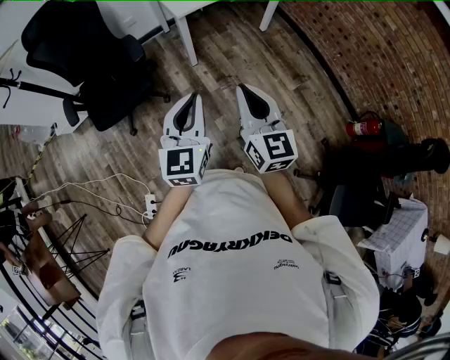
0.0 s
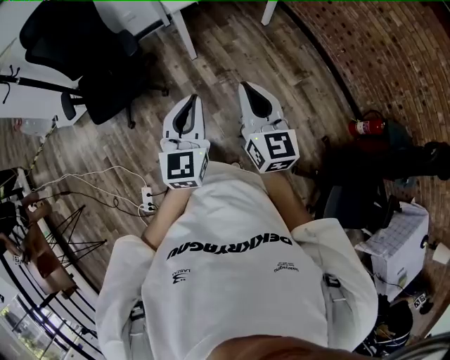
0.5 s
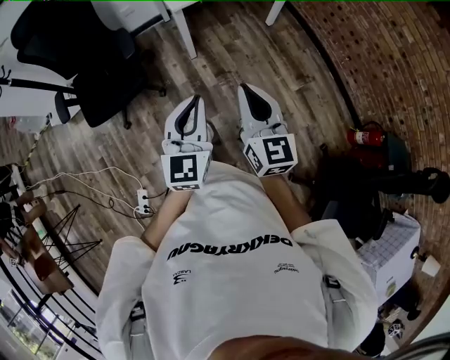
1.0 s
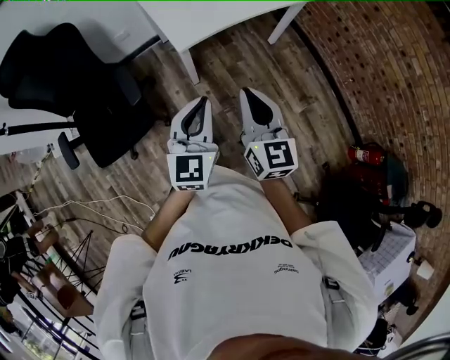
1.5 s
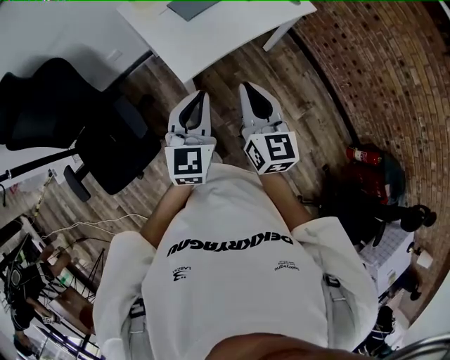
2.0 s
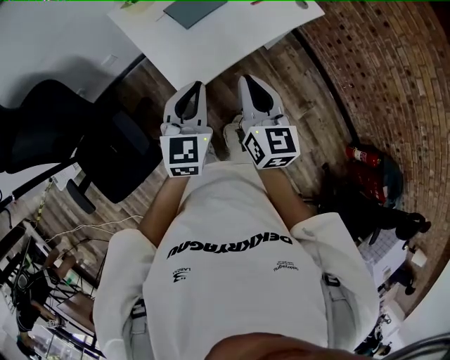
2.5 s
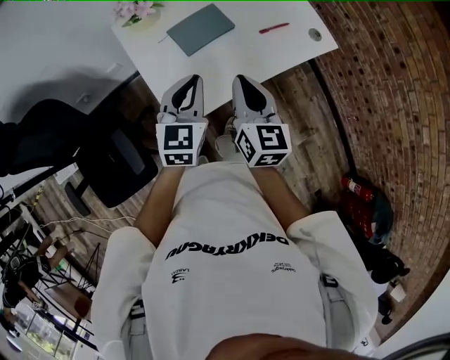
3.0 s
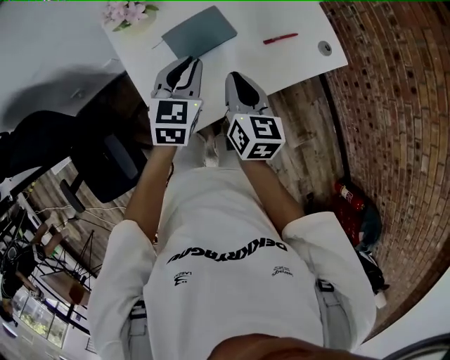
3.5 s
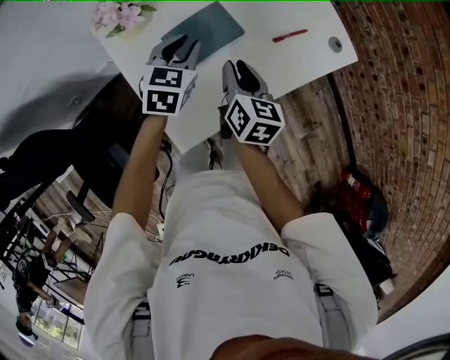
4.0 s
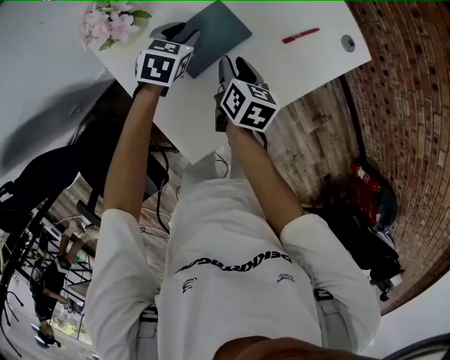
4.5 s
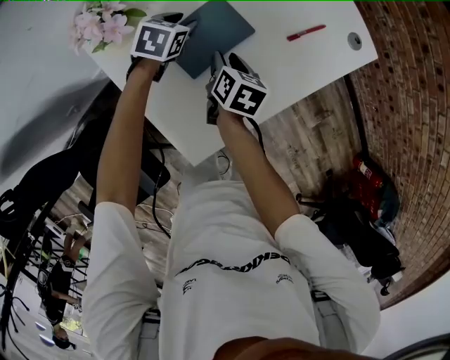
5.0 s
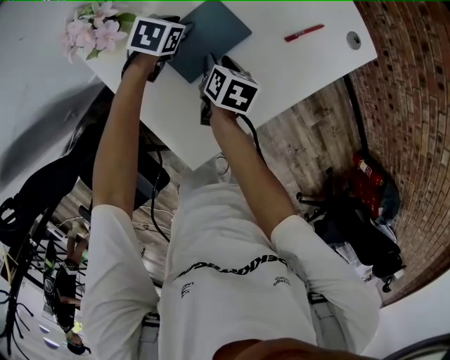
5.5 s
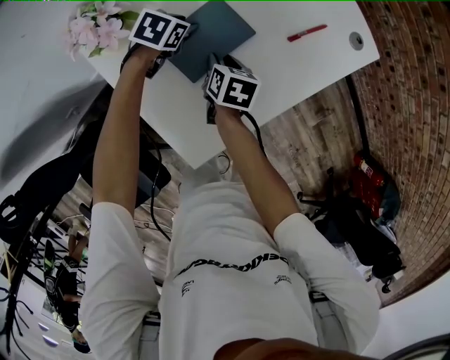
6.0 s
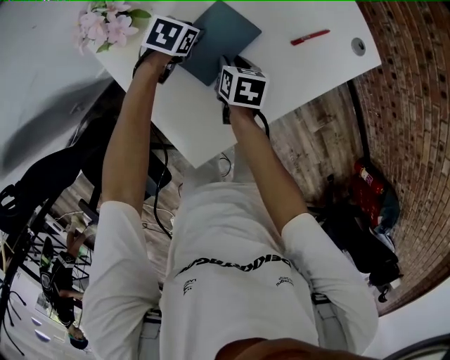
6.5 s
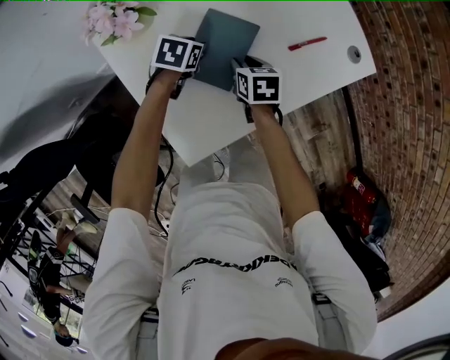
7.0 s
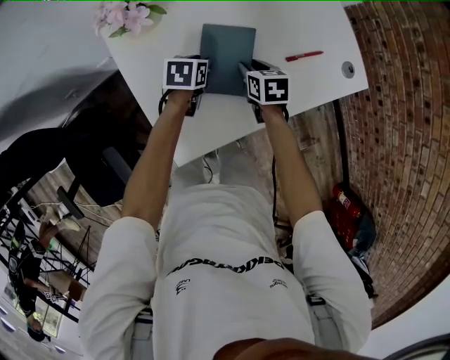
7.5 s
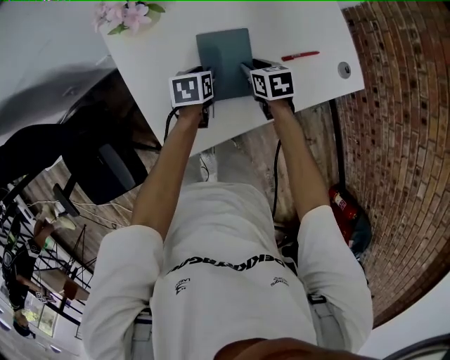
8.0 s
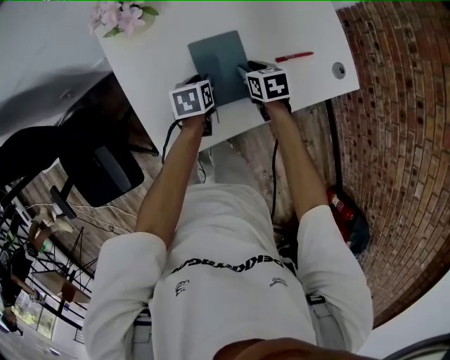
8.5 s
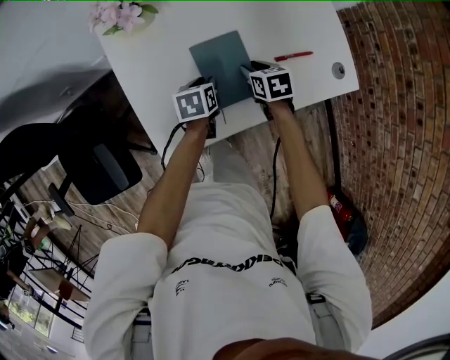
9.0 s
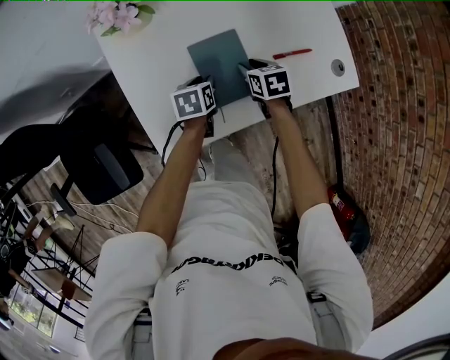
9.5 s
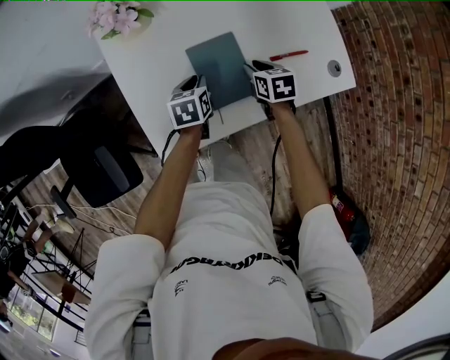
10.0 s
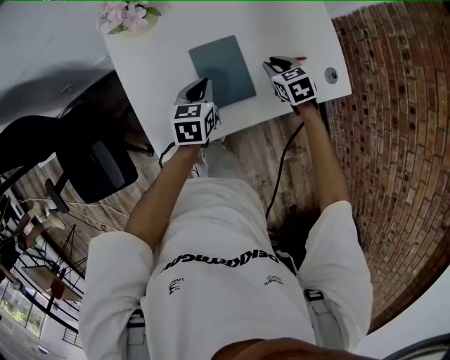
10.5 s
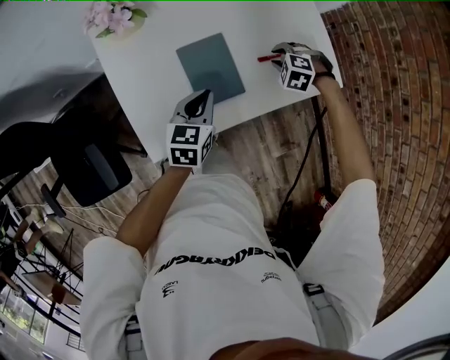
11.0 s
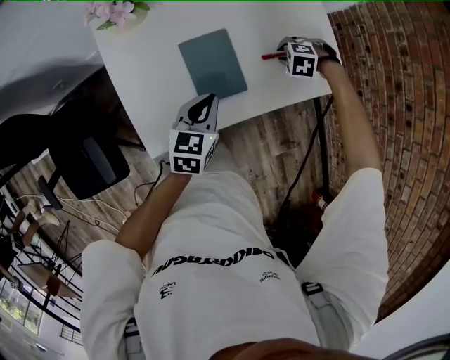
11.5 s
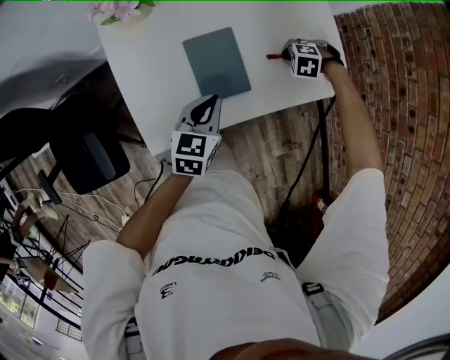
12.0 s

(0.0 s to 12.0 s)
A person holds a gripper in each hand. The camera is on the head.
0.0 s - 2.0 s: The pair of grippers is taken forward, roughly 50 cm.
2.0 s - 4.0 s: The pair of grippers is taken forward, about 50 cm. The right gripper moves downward, about 20 cm, rotates approximately 30 degrees, and opens up; the left gripper turns by roughly 30 degrees, and opens up.
4.0 s - 6.0 s: The left gripper heads downward and forward, covering roughly 20 cm, and turns by roughly 40 degrees. Meanwhile the right gripper goes some 20 cm downward, and changes its angle by approximately 30 degrees.
6.0 s - 8.0 s: The left gripper changes place by roughly 15 cm, and rotates around the line of its fingers by some 40 degrees, counterclockwise from behind; the right gripper moves approximately 5 cm, and rotates some 40 degrees.
8.0 s - 10.0 s: The grippers stay close to where they were, moving slightly.
10.0 s - 12.0 s: The right gripper ends up about 15 cm from where it was, and rotates around the line of its fingers by approximately 80 degrees, counterclockwise from behind; the left gripper moves upward, some 10 cm, and turns by approximately 20 degrees.

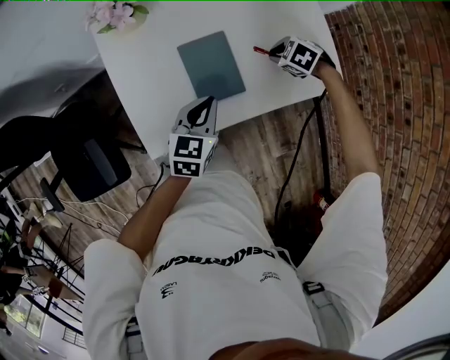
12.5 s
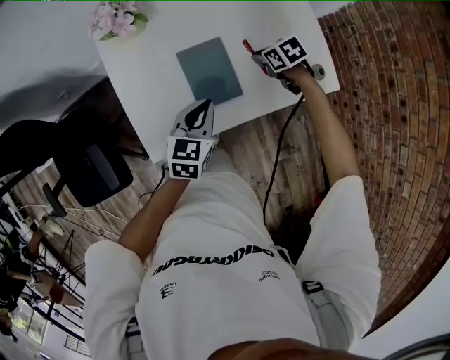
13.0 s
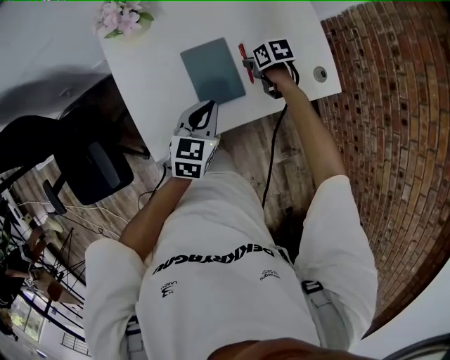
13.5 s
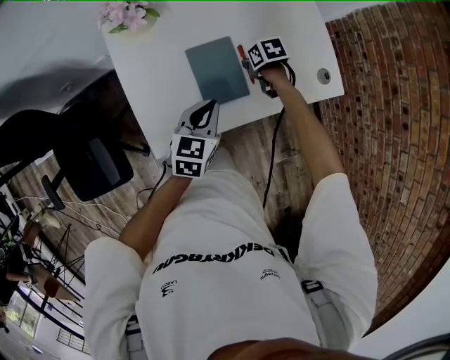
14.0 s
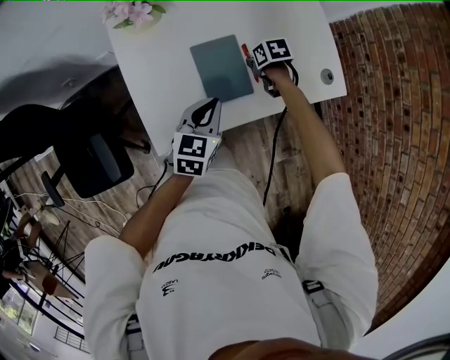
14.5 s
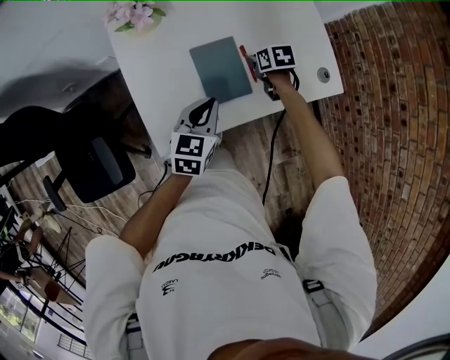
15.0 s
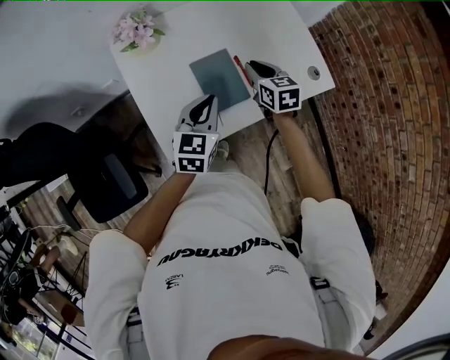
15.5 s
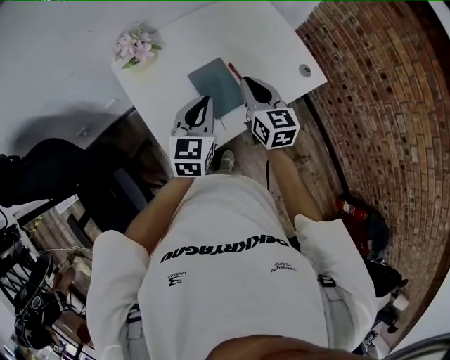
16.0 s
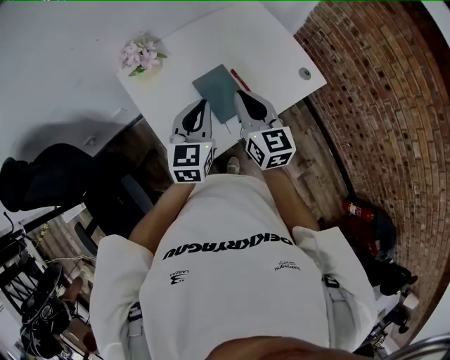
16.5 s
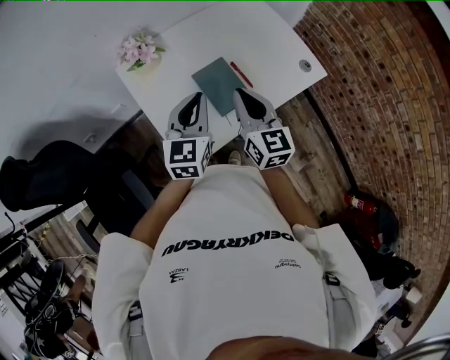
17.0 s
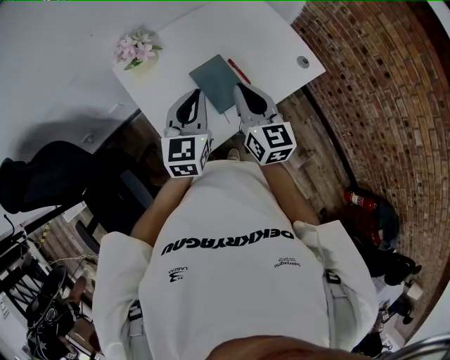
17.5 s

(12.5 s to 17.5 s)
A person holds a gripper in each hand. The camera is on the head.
12.5 s - 15.0 s: The right gripper moves about 5 cm, and twists some 60 degrees clockwise, seen from behind.
15.0 s - 17.5 s: The left gripper travels upward by about 15 cm, and turns by about 20 degrees; the right gripper shifts approximately 35 cm upward and backward, and tilts its fingers approximately 60 degrees upward.

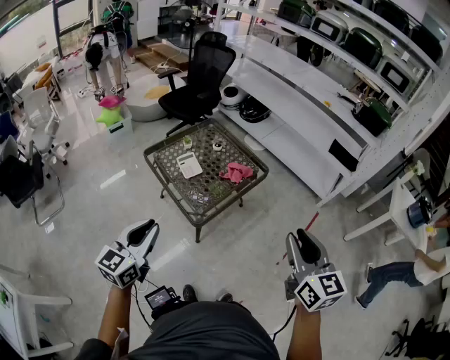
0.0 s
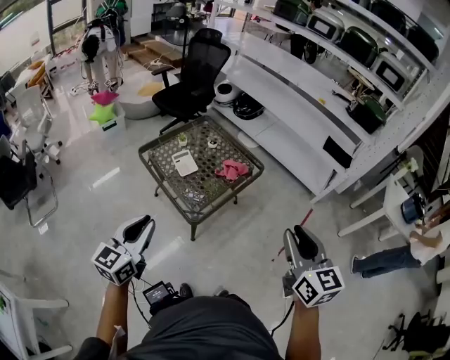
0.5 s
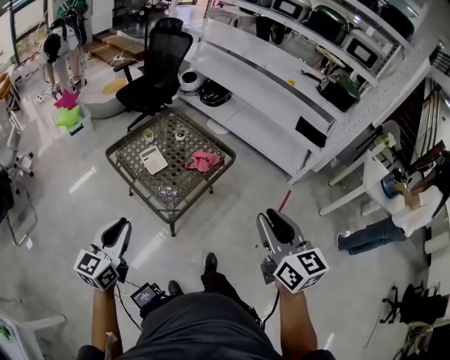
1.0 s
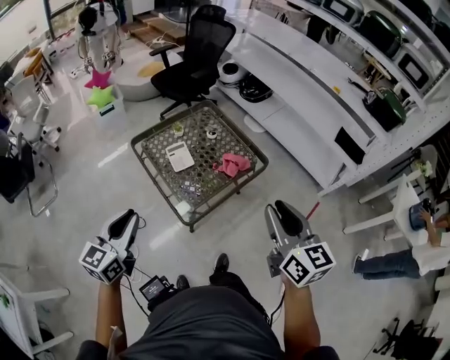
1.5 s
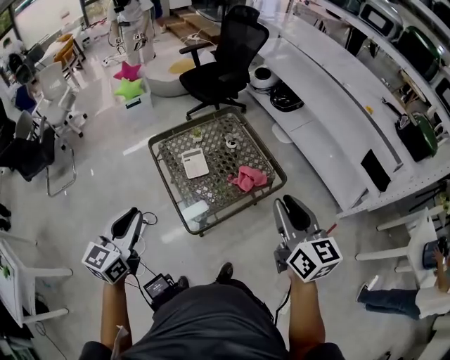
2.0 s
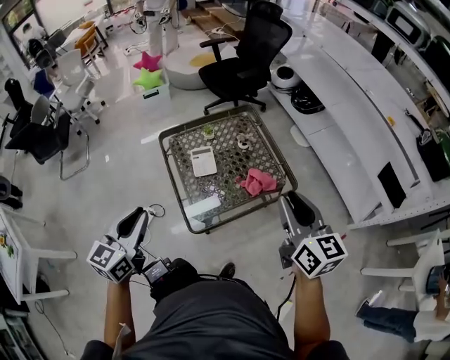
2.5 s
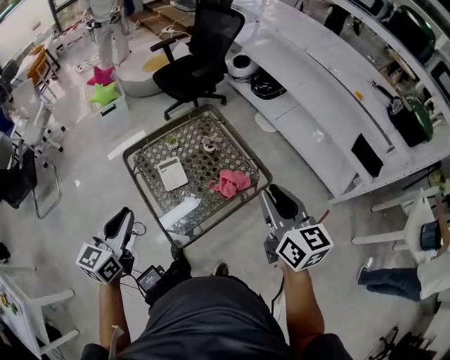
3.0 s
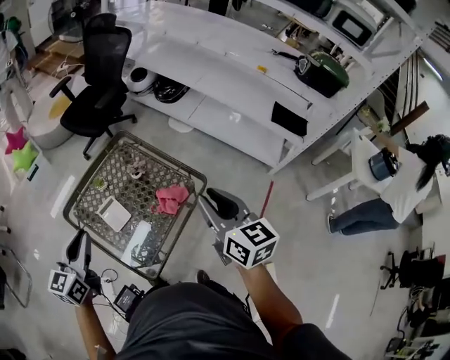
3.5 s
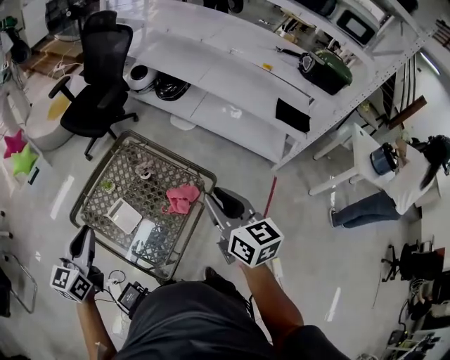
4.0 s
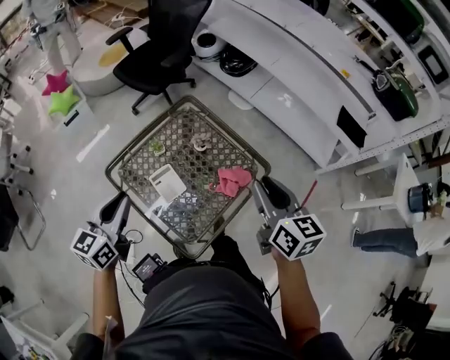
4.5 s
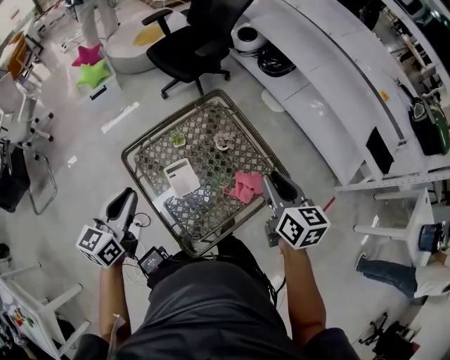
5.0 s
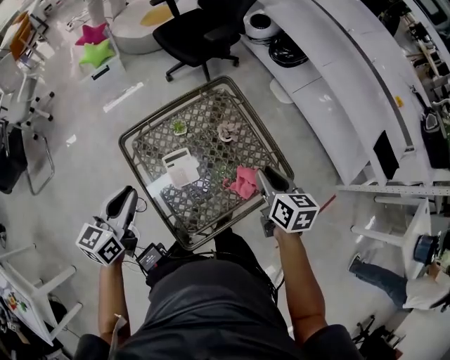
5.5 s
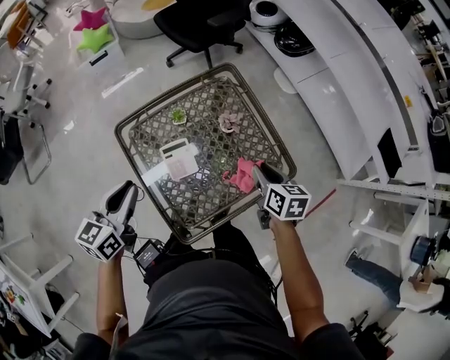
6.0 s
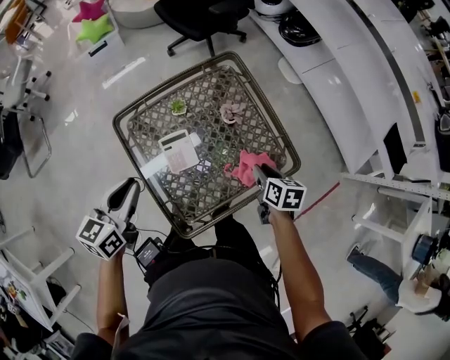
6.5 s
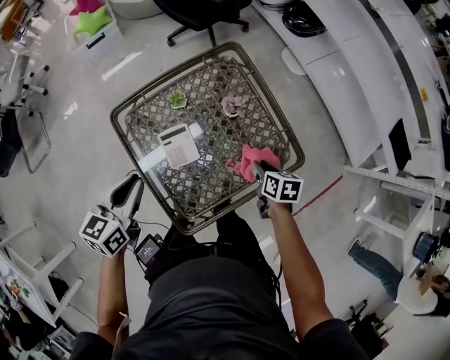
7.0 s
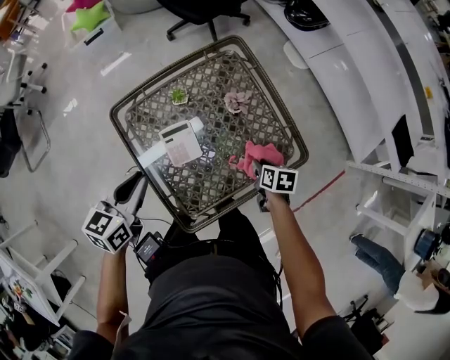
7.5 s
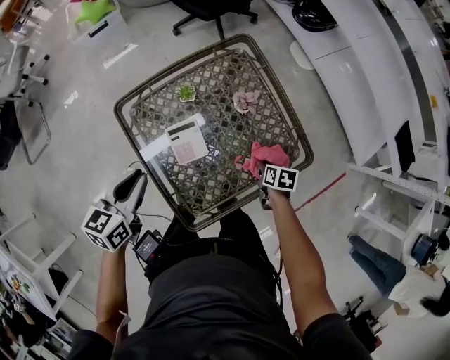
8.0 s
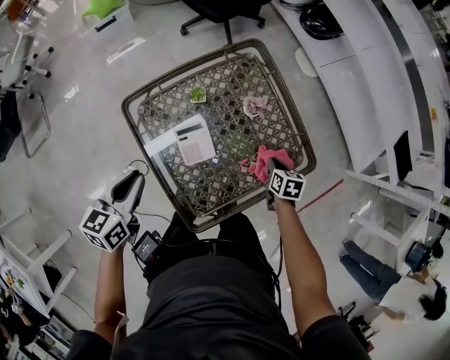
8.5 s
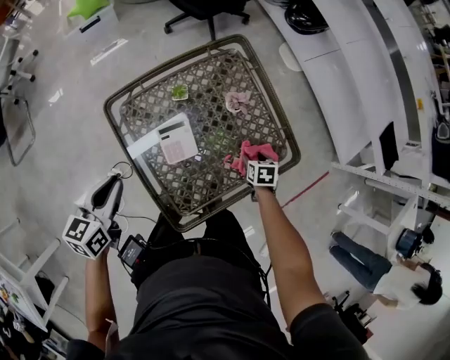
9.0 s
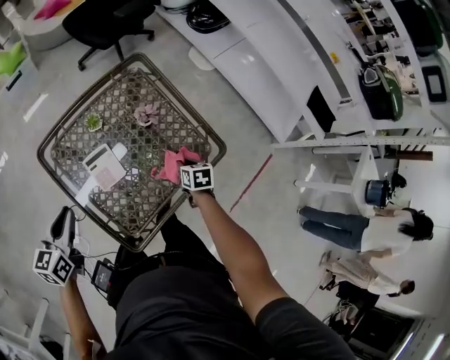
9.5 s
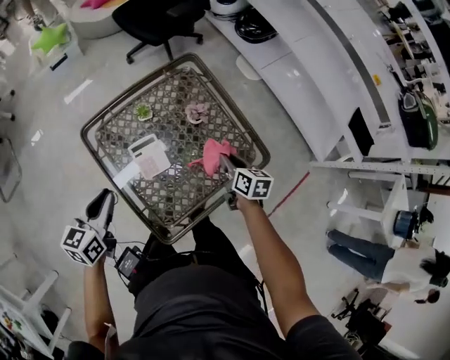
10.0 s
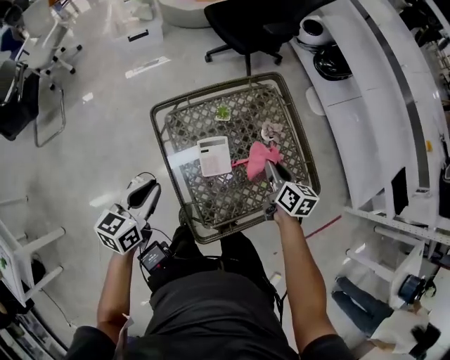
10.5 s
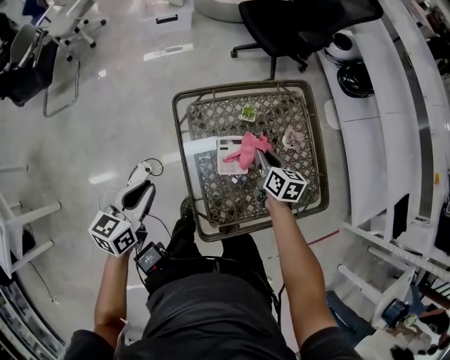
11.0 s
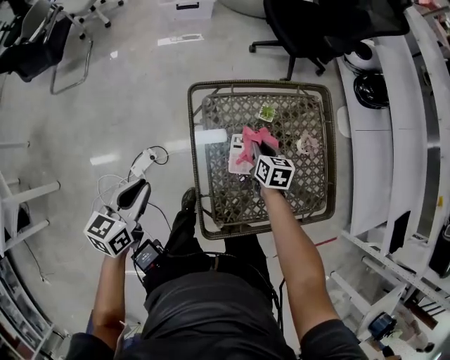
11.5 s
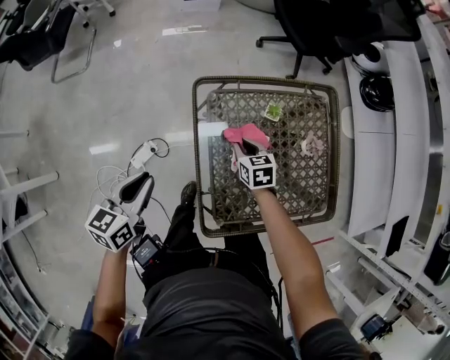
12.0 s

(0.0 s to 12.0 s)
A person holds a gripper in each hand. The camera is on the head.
0.0 s - 2.0 s: The left gripper goes roughly 15 cm forward. Meanwhile the right gripper travels forward by some 30 cm.
2.0 s - 4.0 s: The left gripper shifts by about 30 cm, and swivels about 20 degrees. The right gripper changes place by roughly 15 cm, and rotates roughly 20 degrees.
4.0 s - 6.0 s: The left gripper travels downward by roughly 10 cm, and changes its angle by about 20 degrees. The right gripper heads downward and forward, covering roughly 30 cm, and swivels approximately 30 degrees.
6.0 s - 8.0 s: The right gripper heads downward, covering about 20 cm, and swivels approximately 30 degrees. The left gripper travels downward by approximately 5 cm.
8.0 s - 10.0 s: The right gripper swings up and down, approximately 15 cm each way, with 2 reversals, swivels about 30 degrees, and opens, then closes once more.
10.0 s - 12.0 s: The left gripper moves about 20 cm, and changes its angle by approximately 20 degrees. The right gripper changes place by roughly 35 cm, and rotates roughly 50 degrees.
